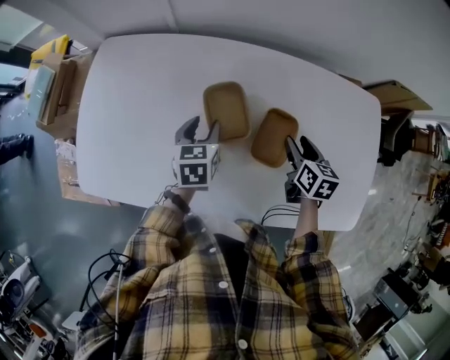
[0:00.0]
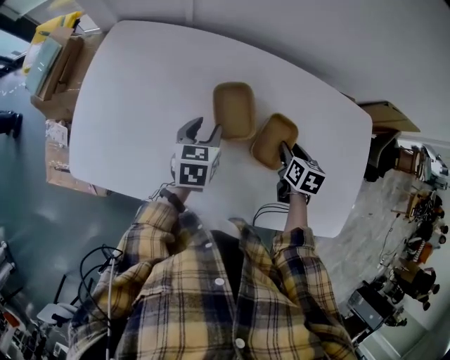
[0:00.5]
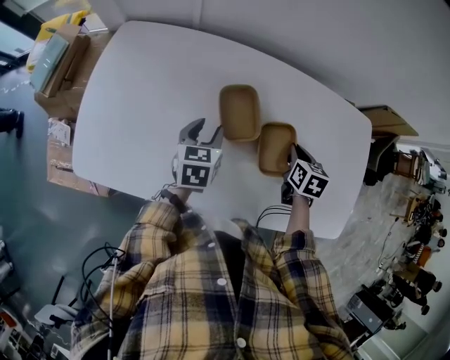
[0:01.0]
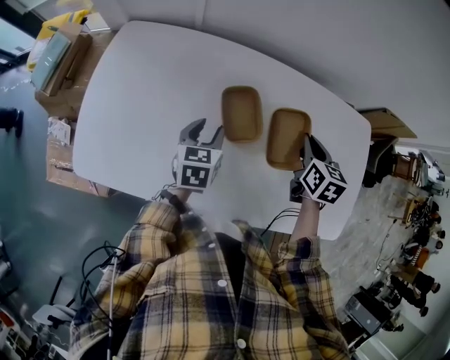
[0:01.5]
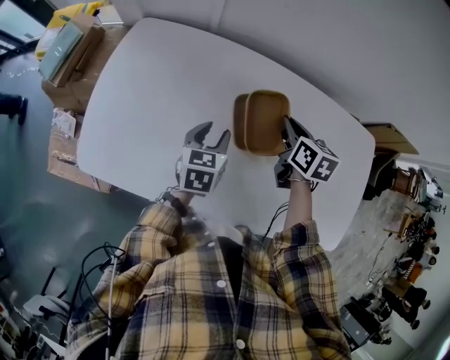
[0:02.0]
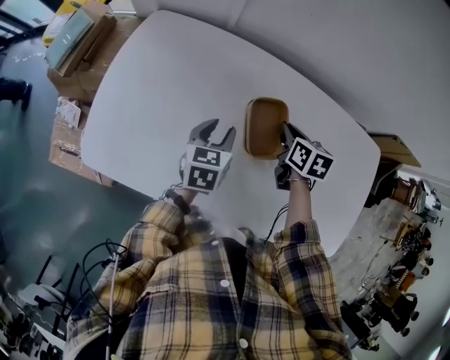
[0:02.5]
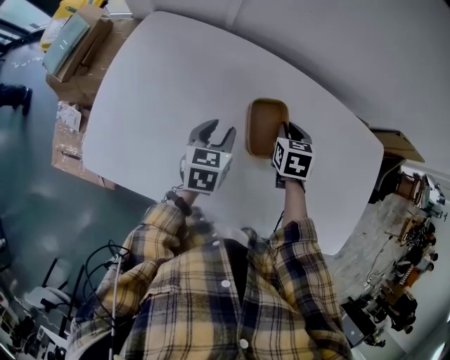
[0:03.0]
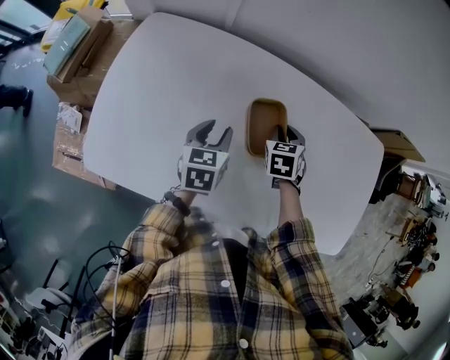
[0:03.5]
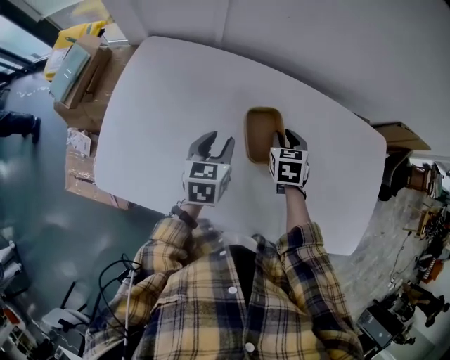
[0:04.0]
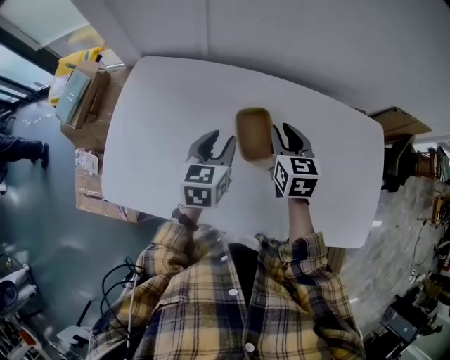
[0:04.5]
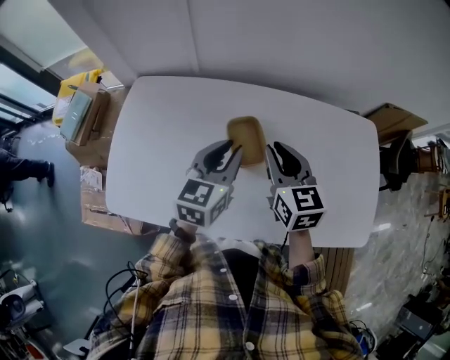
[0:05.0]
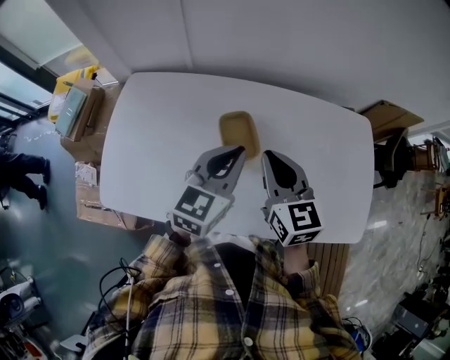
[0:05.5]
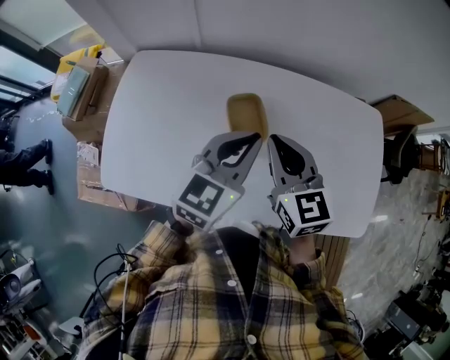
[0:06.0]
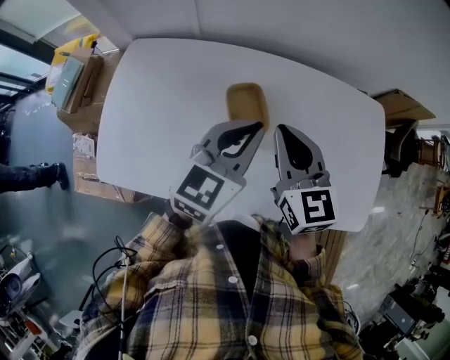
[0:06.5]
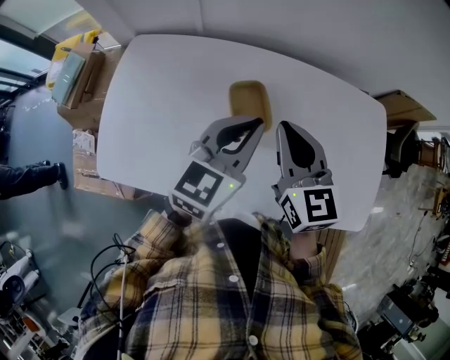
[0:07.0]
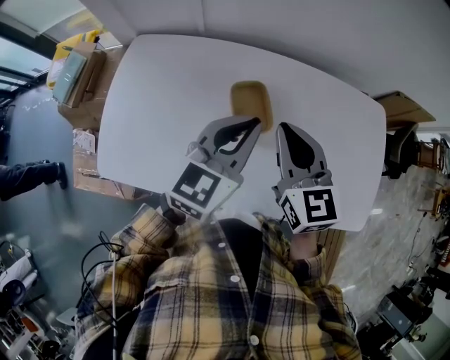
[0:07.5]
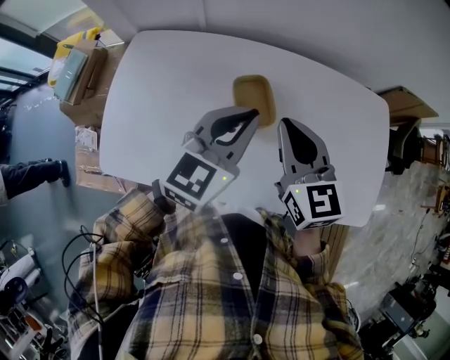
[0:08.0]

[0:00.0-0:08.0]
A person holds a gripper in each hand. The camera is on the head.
0:00.0 to 0:02.0: The right gripper travels to the left, forward and upward by approximately 15 cm, and closes.
0:02.0 to 0:04.0: The right gripper heads downward, covering approximately 10 cm, and changes its angle by some 30 degrees.
0:04.0 to 0:06.0: The right gripper heads upward and backward, covering some 25 cm, and tilts its fingers roughly 30 degrees upward. The left gripper goes approximately 25 cm upward and to the right, rotates some 40 degrees, and closes its fingers.
0:06.0 to 0:08.0: There are only small adjustments of the grippers.

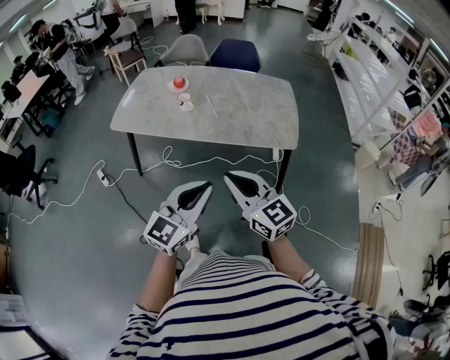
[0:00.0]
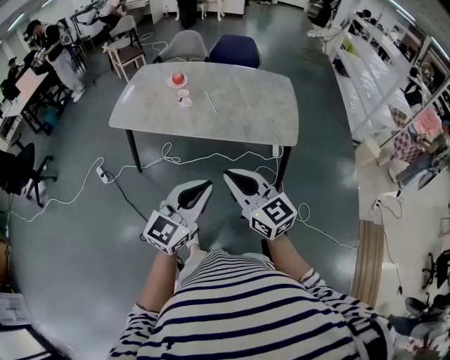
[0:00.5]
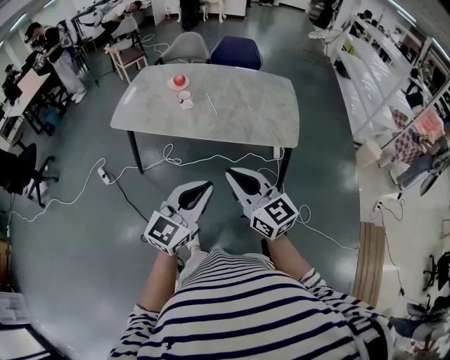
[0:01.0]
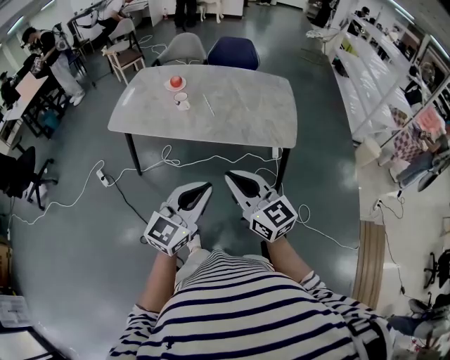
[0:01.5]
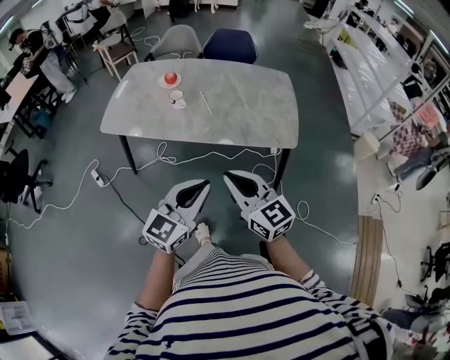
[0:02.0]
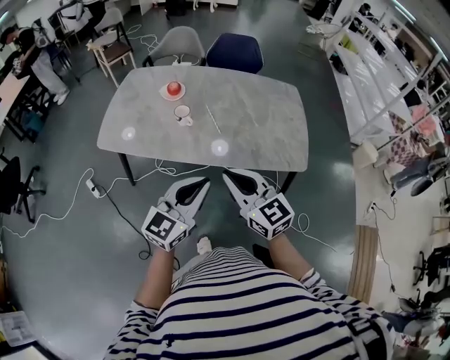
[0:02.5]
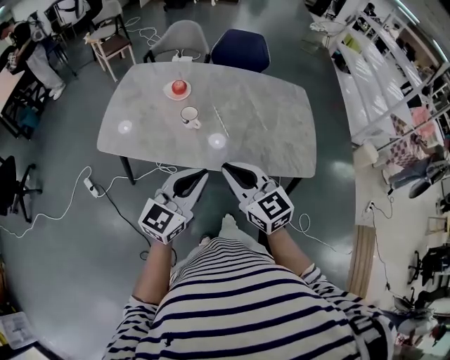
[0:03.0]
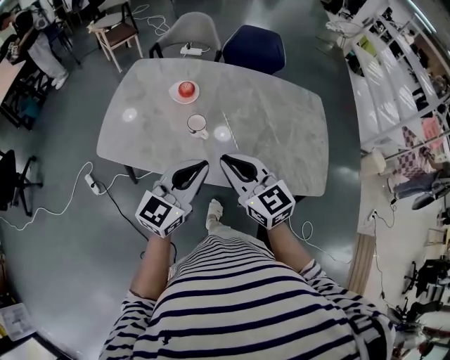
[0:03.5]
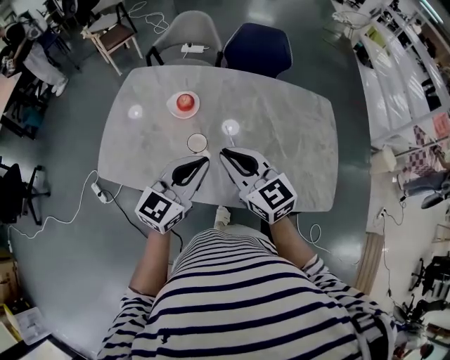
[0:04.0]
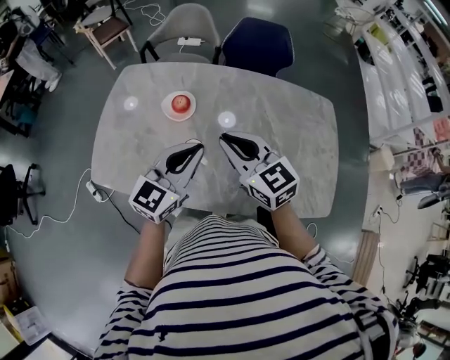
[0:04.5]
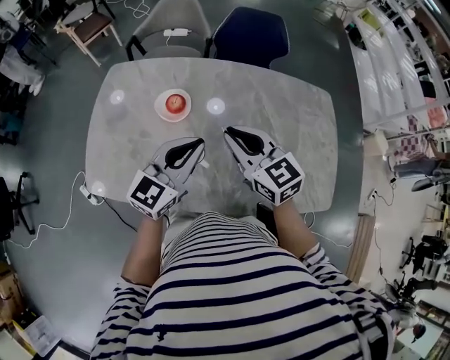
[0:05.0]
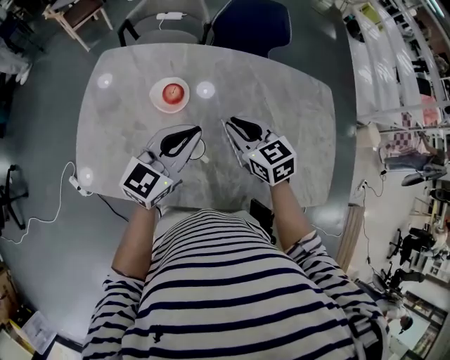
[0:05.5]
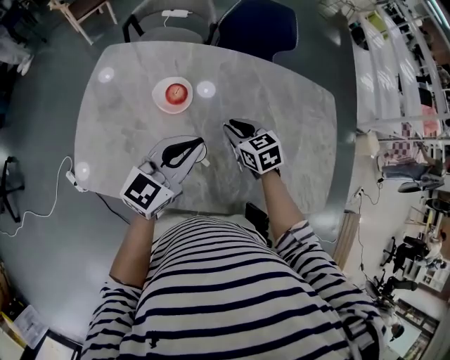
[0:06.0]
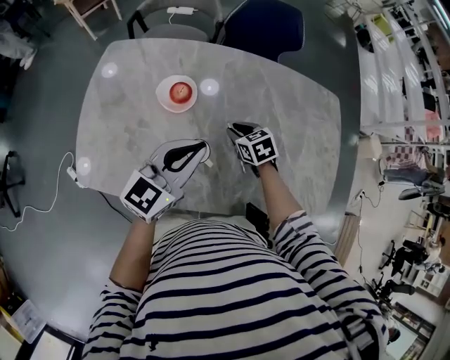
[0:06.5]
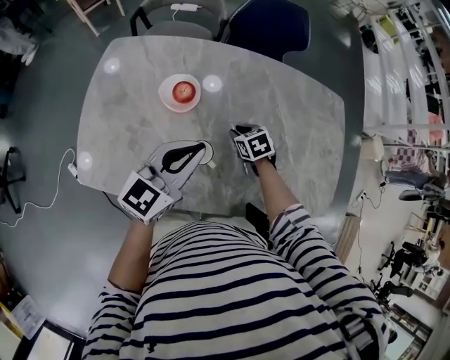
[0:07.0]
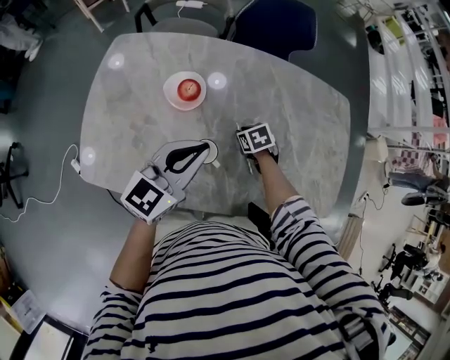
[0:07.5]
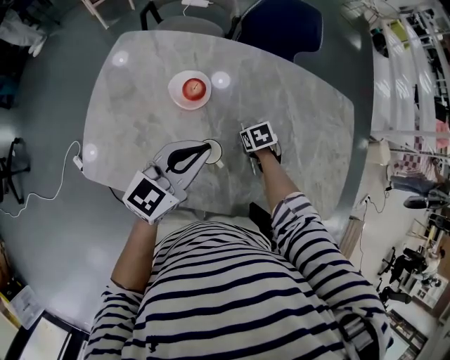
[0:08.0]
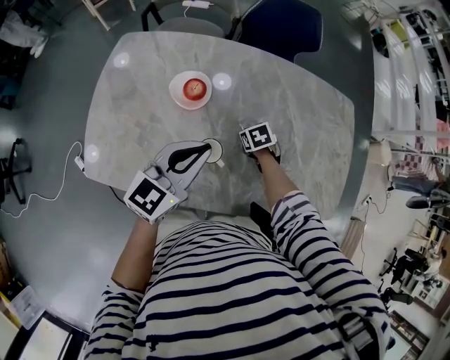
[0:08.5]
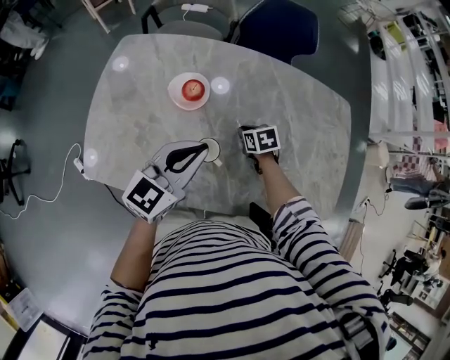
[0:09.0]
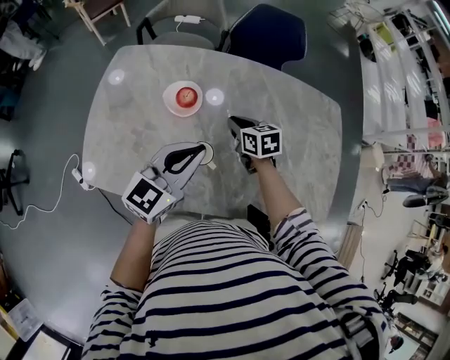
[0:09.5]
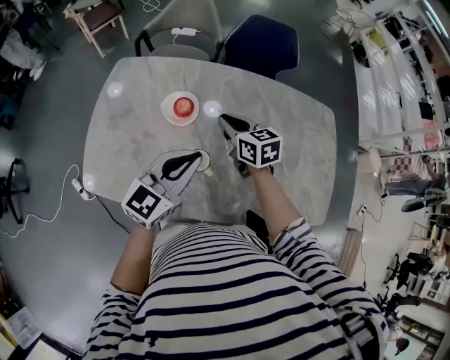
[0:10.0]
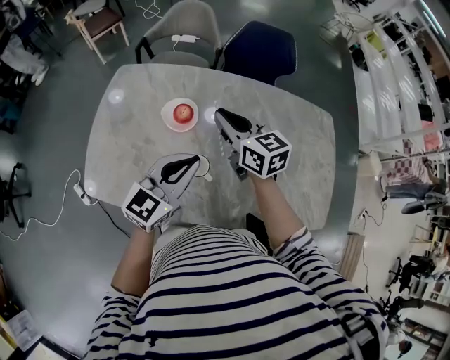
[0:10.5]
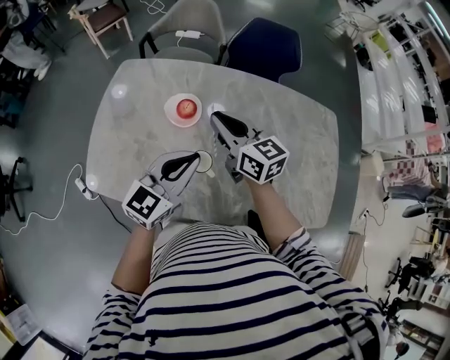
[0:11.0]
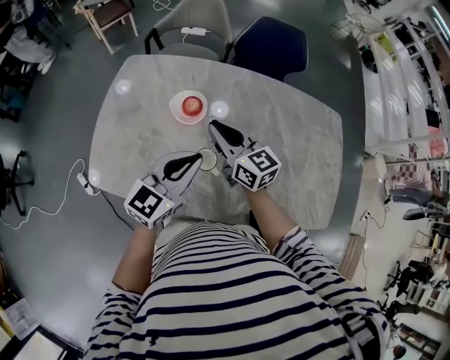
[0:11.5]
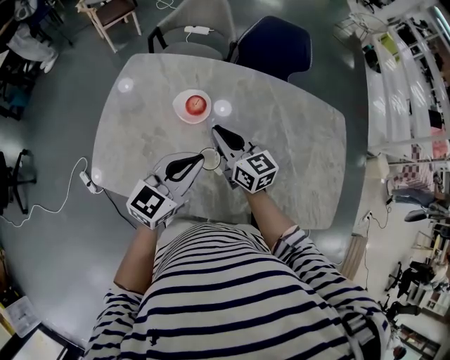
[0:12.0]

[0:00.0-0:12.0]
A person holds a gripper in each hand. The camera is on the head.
0:00.0 to 0:02.0: The two grippers go roughly 5 cm forward.
0:02.0 to 0:04.0: The pair of grippers is taken forward, approximately 40 cm.
0:04.0 to 0:06.0: The left gripper is displaced forward by approximately 15 cm. Meanwhile the right gripper heads downward and forward, covering some 25 cm, and points its fingers roughly 30 degrees further downward.
0:06.0 to 0:08.0: The right gripper is displaced downward by about 15 cm, and changes its angle by some 30 degrees.
0:08.0 to 0:10.0: The right gripper travels upward by approximately 20 cm, and tips its fingers upward by some 40 degrees.
0:10.0 to 0:12.0: The right gripper travels upward and back again, about 10 cm each way.

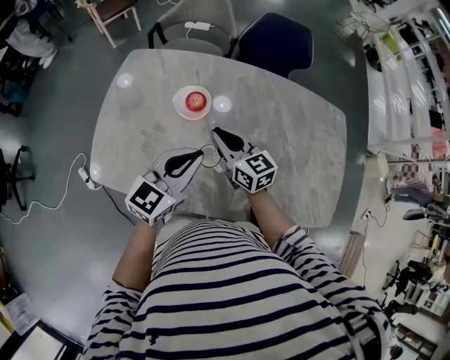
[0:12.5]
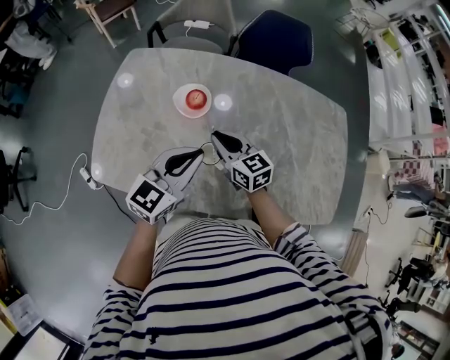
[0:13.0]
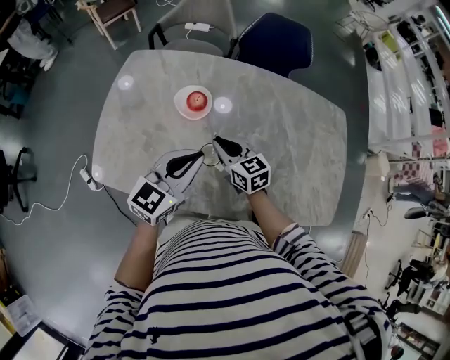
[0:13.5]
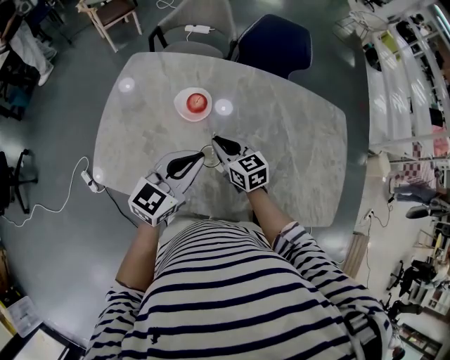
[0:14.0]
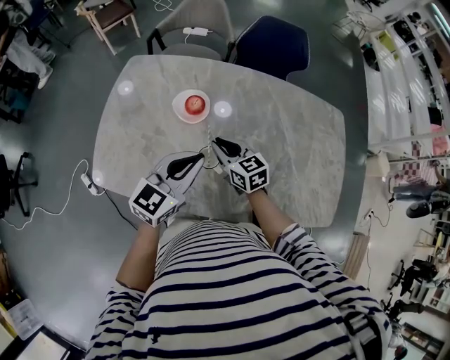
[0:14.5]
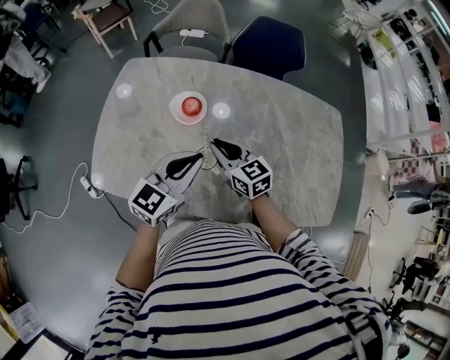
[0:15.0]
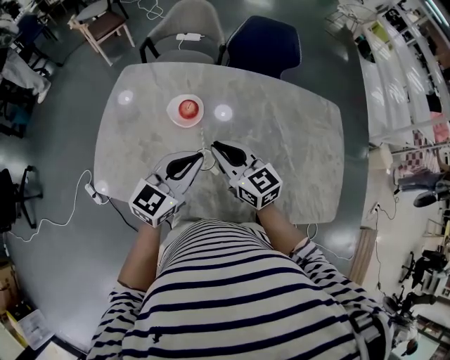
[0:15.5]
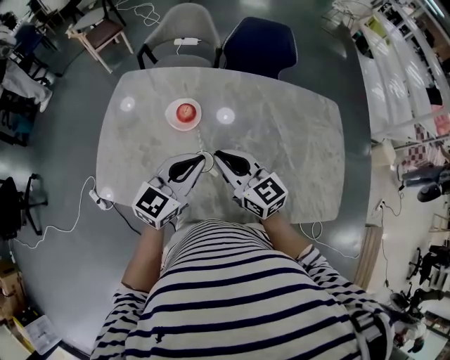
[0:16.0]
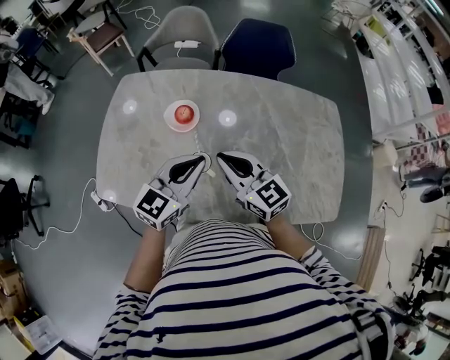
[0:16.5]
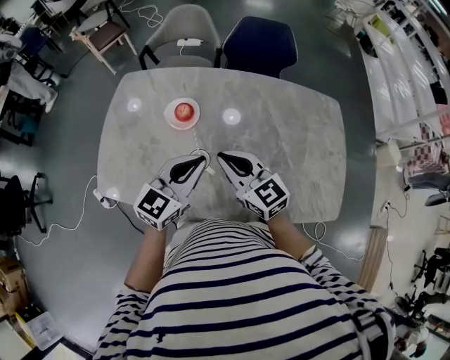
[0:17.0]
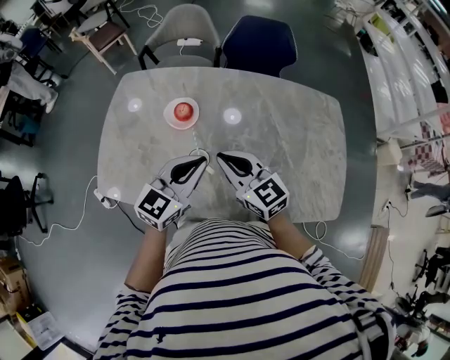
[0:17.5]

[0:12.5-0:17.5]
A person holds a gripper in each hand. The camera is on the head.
0:12.5 to 0:15.0: There are only small adjustments of the grippers.
0:15.0 to 0:17.5: The right gripper goes approximately 10 cm upward, backward and to the right, while the left gripper goes approximately 5 cm to the right.

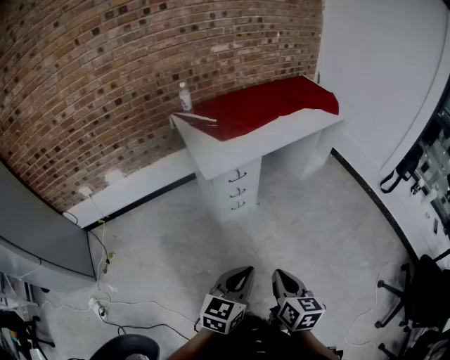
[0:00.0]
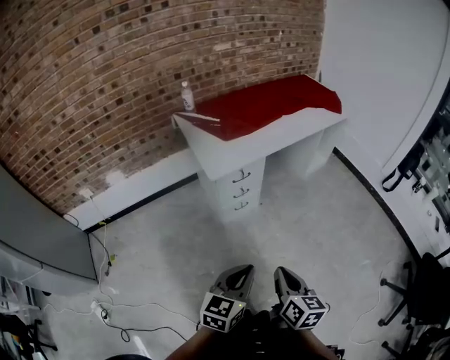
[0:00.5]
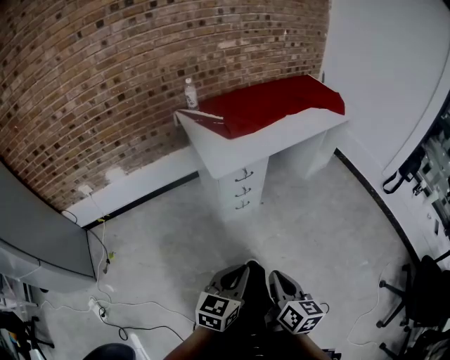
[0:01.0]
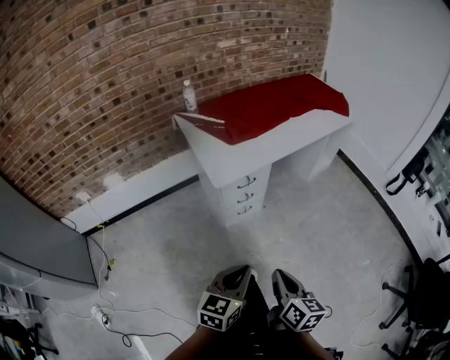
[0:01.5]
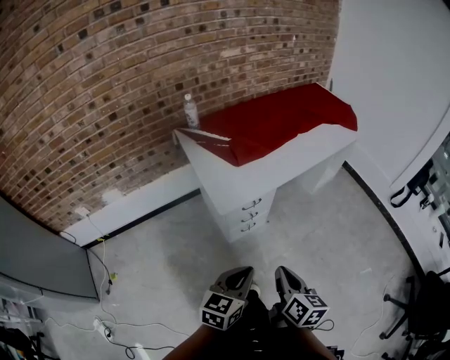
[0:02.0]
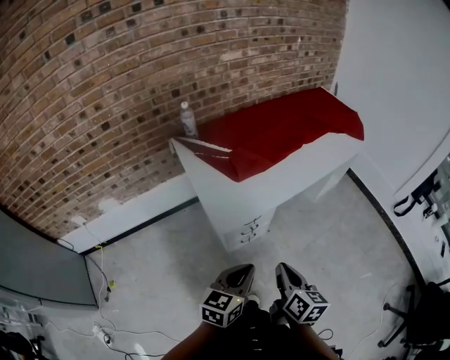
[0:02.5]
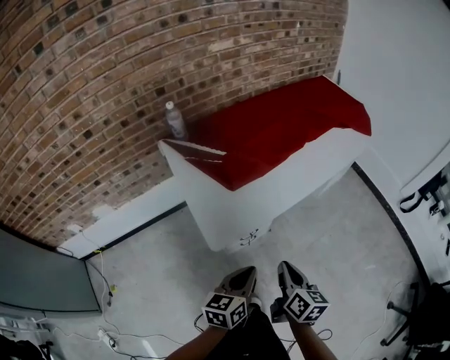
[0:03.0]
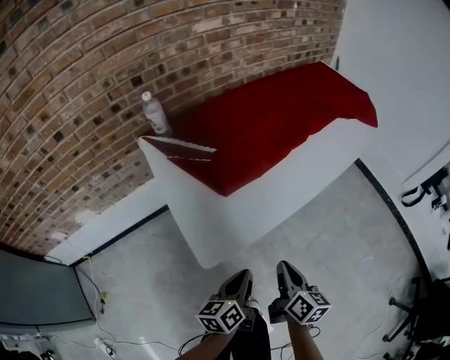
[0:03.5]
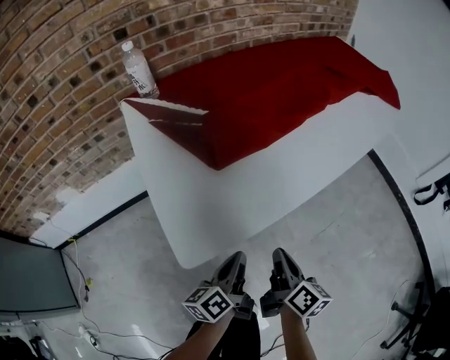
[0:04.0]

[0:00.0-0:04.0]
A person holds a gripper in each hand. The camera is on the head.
0:00.0 to 0:02.0: The grippers both shift forward and to the left by roughly 20 cm.
0:02.0 to 0:04.0: Both grippers travel together forward and downward, approximately 35 cm. The left gripper rotates around the line of its fingers by roughly 50 degrees, counterclockwise from behind.
